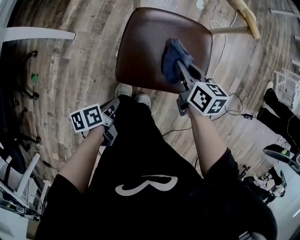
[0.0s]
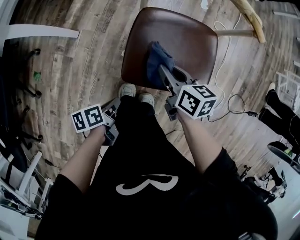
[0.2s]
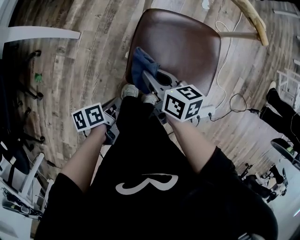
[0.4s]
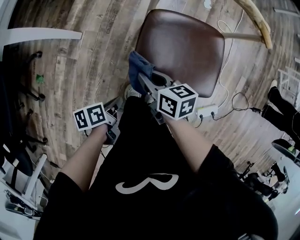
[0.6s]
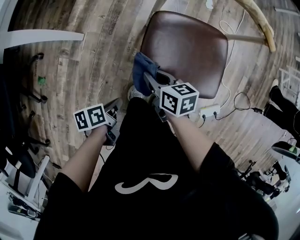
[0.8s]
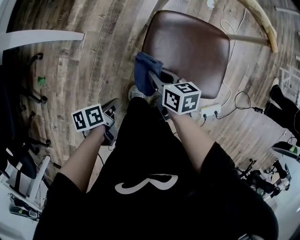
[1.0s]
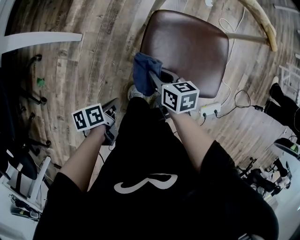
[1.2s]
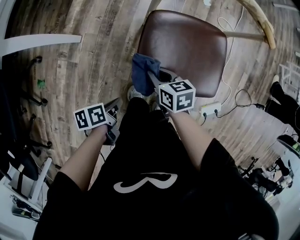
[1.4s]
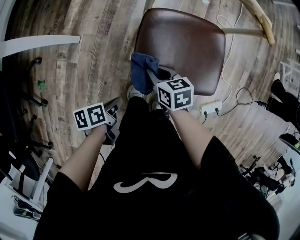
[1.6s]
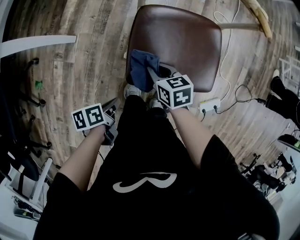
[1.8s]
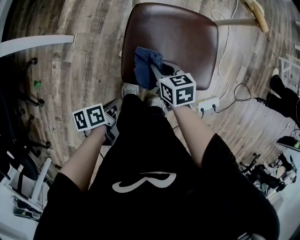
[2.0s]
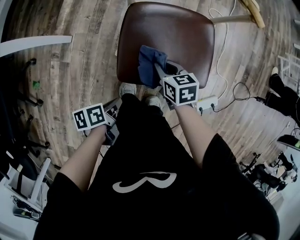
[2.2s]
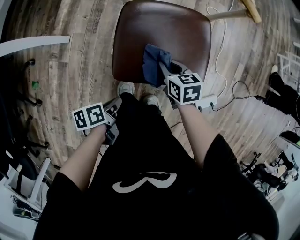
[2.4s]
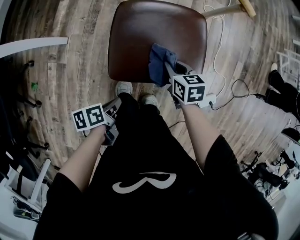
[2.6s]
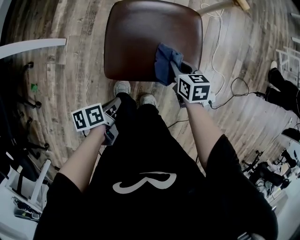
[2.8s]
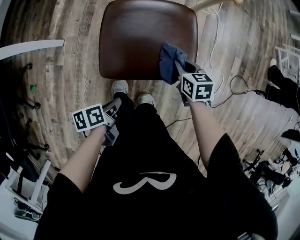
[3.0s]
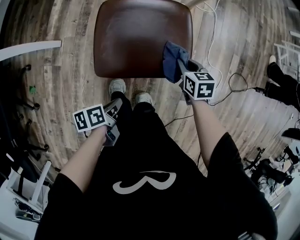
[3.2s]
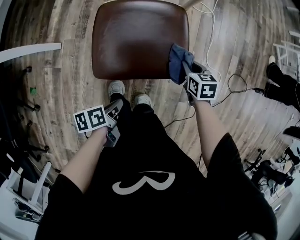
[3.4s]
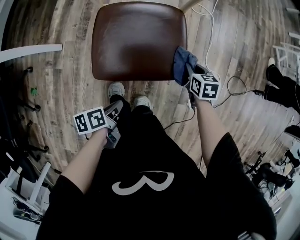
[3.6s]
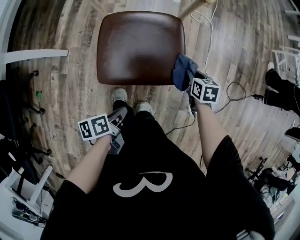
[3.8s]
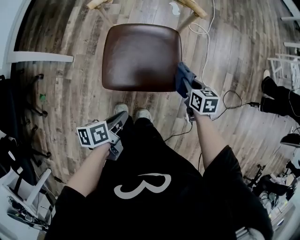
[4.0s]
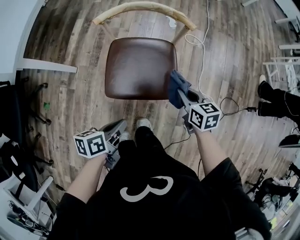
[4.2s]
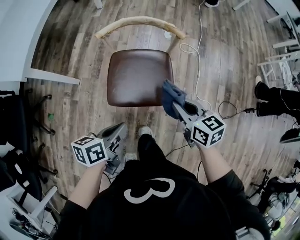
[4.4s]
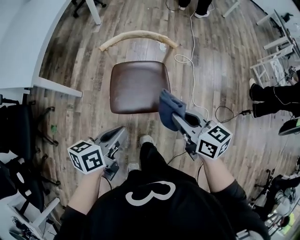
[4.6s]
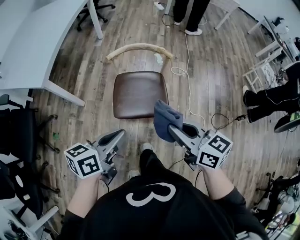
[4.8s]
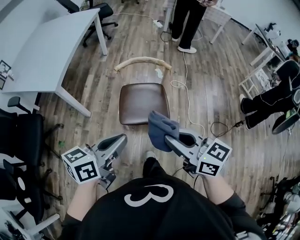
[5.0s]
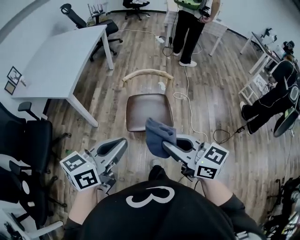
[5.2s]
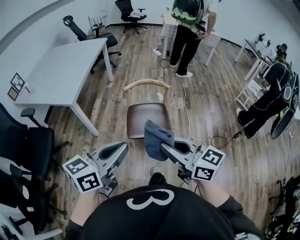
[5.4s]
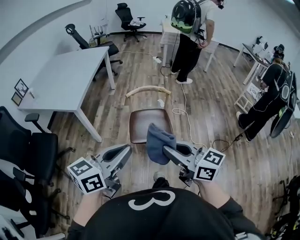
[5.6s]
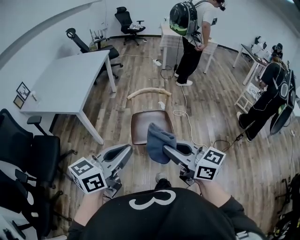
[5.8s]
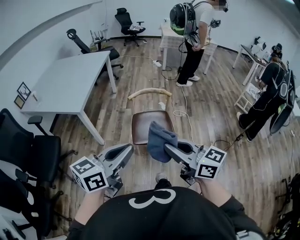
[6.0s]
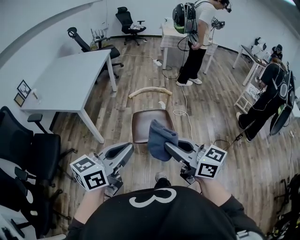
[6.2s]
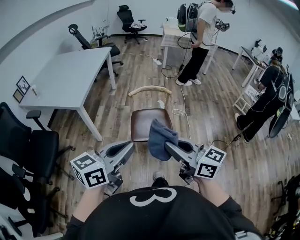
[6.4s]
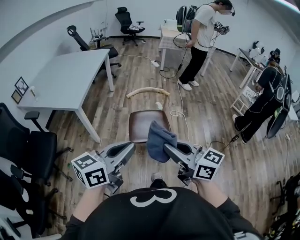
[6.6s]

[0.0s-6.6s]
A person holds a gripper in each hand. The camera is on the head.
0.0s to 1.6s: The right gripper changes place by roughly 20 cm.
1.6s to 3.2s: The right gripper changes place by approximately 25 cm.
3.2s to 5.0s: The right gripper moves upward, about 50 cm, and tips its fingers upward by roughly 40 degrees.
5.0s to 6.6s: The right gripper changes place by about 15 cm.

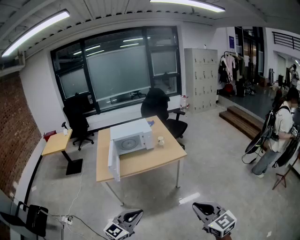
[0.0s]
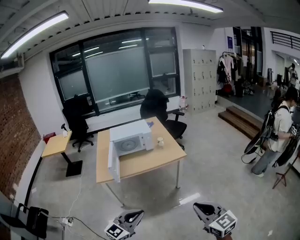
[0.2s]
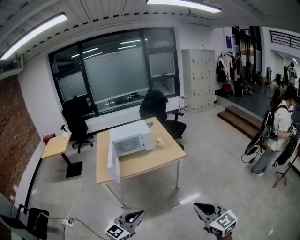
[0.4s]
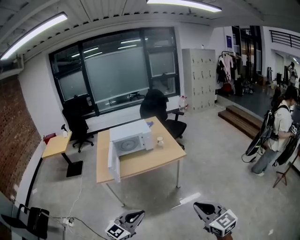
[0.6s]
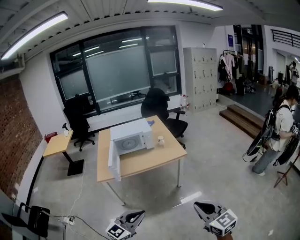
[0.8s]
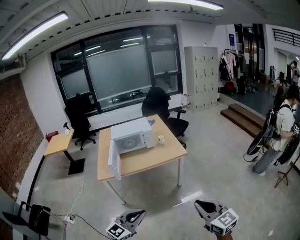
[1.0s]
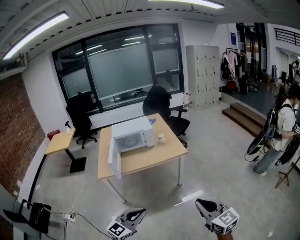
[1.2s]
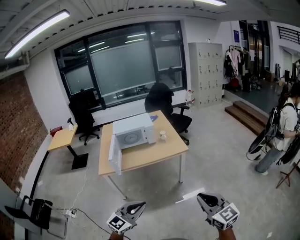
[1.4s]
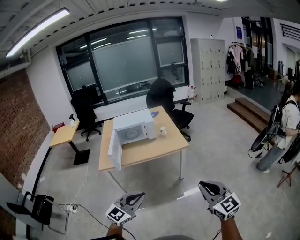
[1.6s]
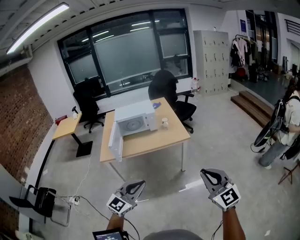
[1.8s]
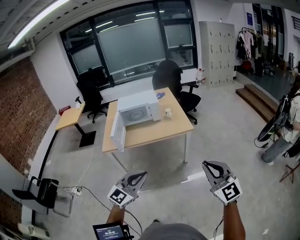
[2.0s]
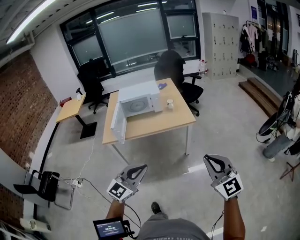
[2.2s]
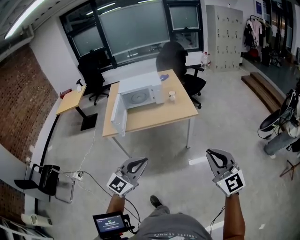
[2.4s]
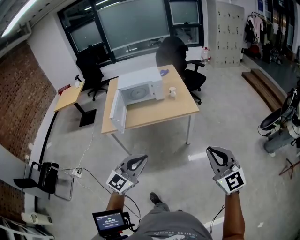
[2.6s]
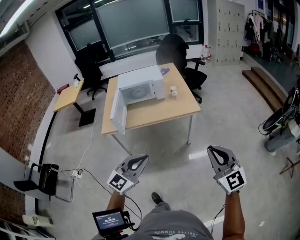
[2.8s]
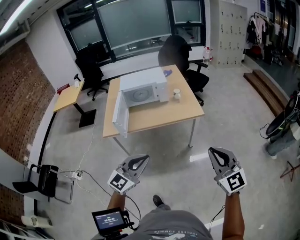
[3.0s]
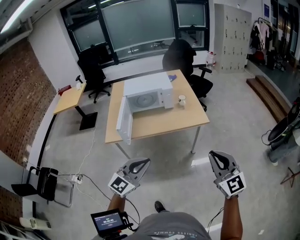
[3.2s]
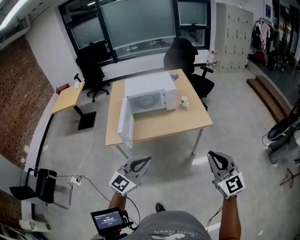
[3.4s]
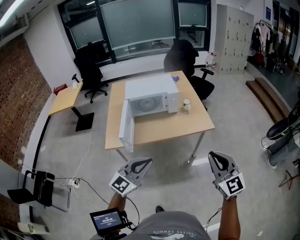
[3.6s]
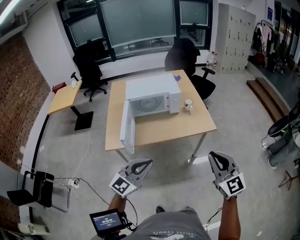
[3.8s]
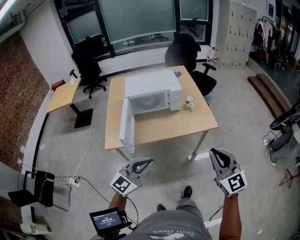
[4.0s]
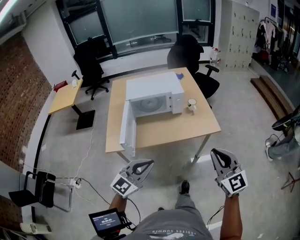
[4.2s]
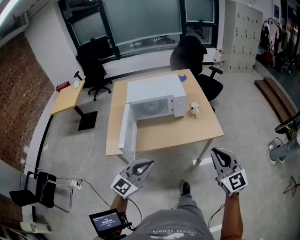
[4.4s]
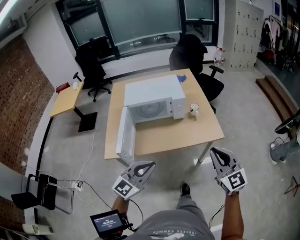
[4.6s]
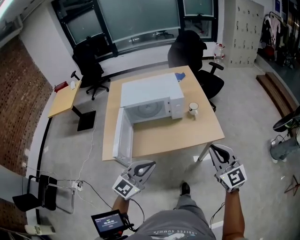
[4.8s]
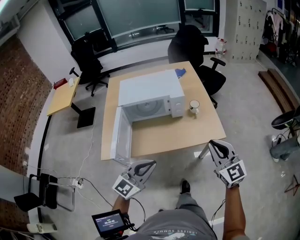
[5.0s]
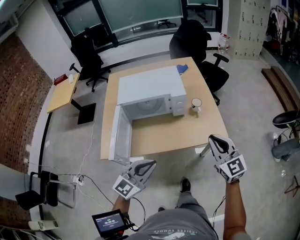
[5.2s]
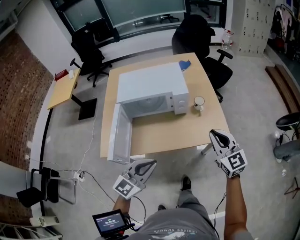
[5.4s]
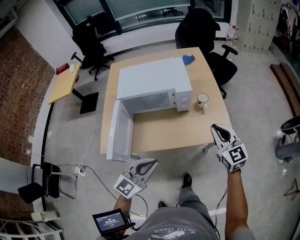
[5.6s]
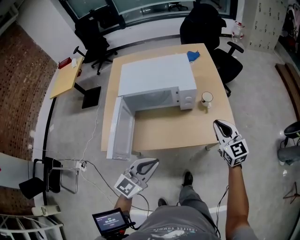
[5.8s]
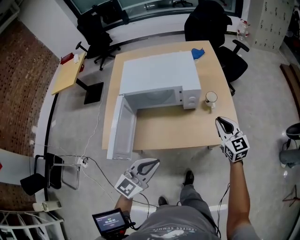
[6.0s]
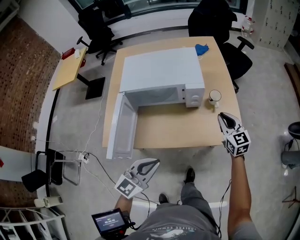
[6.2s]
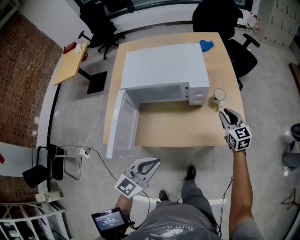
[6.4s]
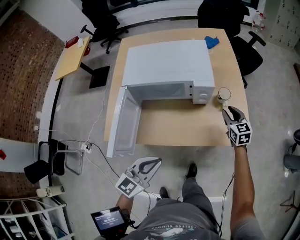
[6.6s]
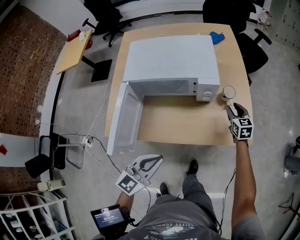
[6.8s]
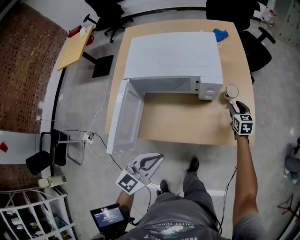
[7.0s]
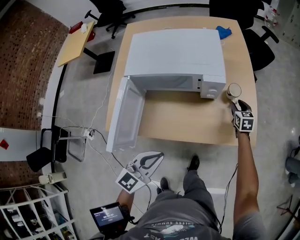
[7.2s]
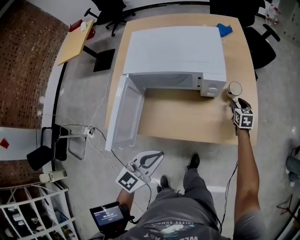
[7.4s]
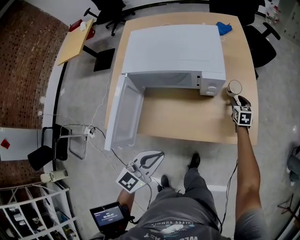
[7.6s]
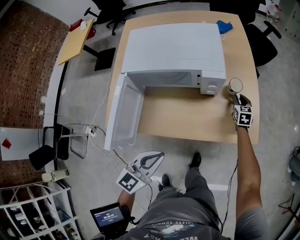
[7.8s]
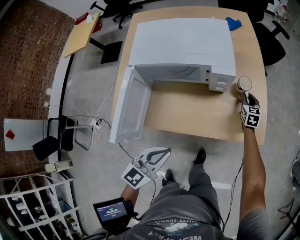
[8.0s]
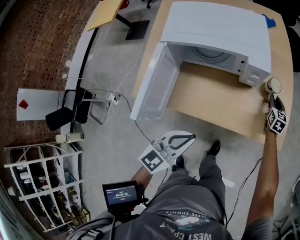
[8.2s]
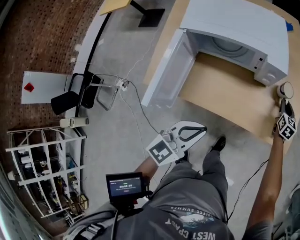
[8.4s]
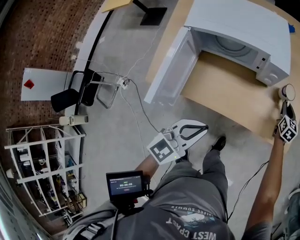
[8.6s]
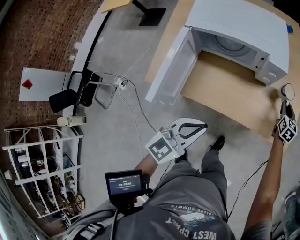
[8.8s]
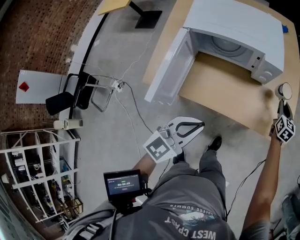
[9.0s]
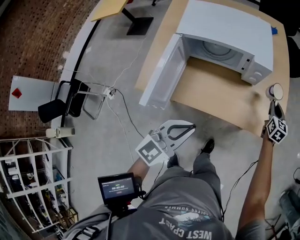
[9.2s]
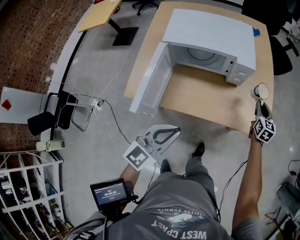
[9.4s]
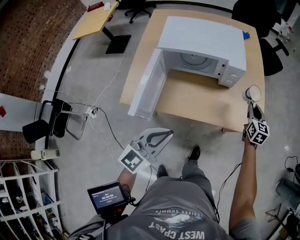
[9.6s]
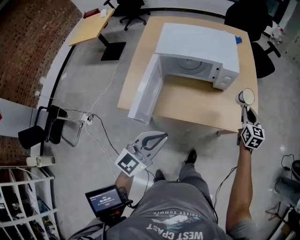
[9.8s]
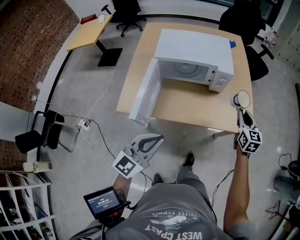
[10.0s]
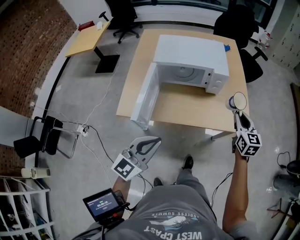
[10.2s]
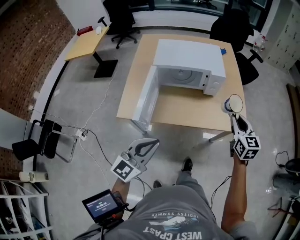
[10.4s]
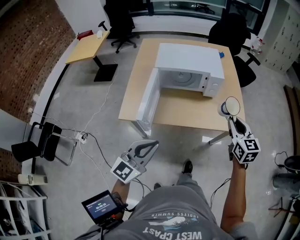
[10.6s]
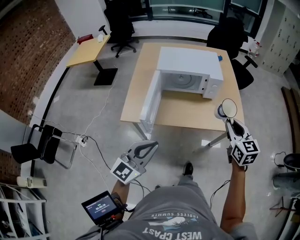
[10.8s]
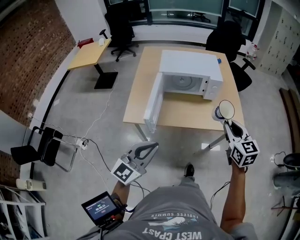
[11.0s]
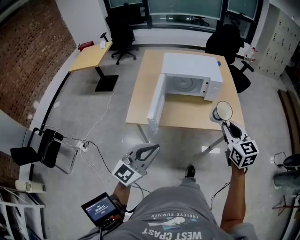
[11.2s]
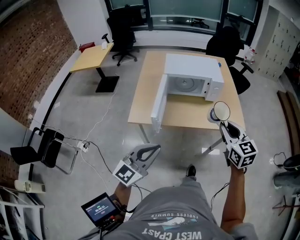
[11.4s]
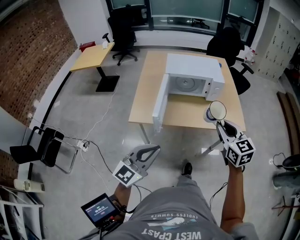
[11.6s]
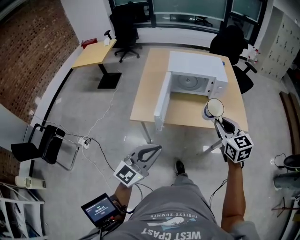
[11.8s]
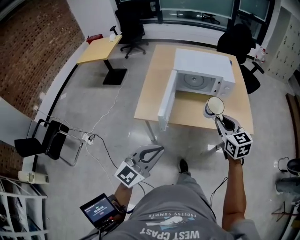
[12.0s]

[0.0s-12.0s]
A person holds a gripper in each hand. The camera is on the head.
0.0s to 1.6s: Both grippers travel together to the right, roughly 10 cm.
1.6s to 3.0s: The grippers both shift forward by some 15 cm.
3.0s to 4.4s: The grippers both shift forward and to the left by some 30 cm.
4.4s to 6.0s: The right gripper goes about 40 cm forward and downward; the left gripper shifts about 25 cm forward and downward.
6.0s to 7.6s: The right gripper shifts some 35 cm downward and forward, rotates approximately 30 degrees, and opens up. Meanwhile the left gripper travels downward and forward by approximately 10 cm.
7.6s to 9.0s: The right gripper heads upward and backward, covering roughly 10 cm, and closes up; the left gripper goes roughly 5 cm backward.
9.0s to 10.4s: The left gripper shifts some 20 cm backward, upward and to the left. The right gripper shifts roughly 35 cm backward and upward.
10.4s to 12.0s: The right gripper is displaced to the left and backward by approximately 25 cm, while the left gripper shifts roughly 15 cm backward and to the left.

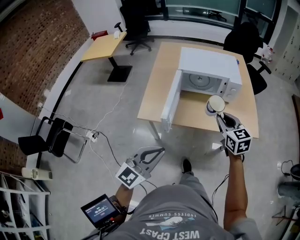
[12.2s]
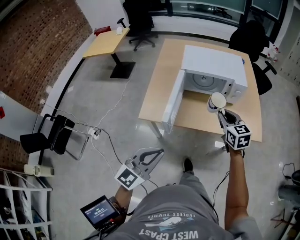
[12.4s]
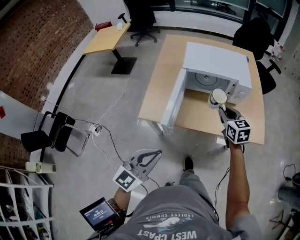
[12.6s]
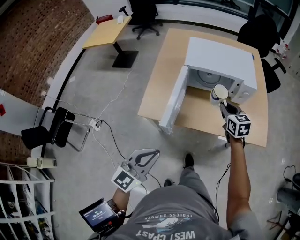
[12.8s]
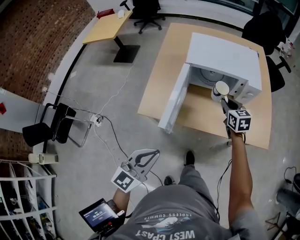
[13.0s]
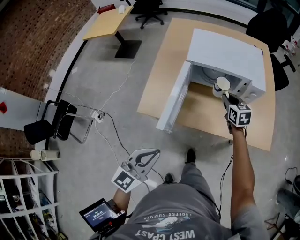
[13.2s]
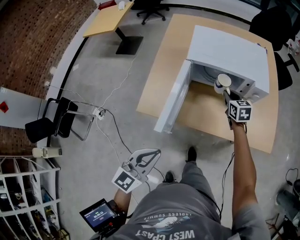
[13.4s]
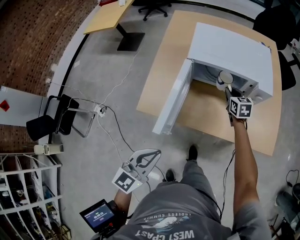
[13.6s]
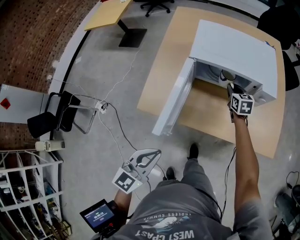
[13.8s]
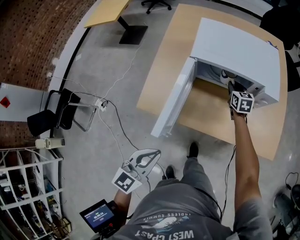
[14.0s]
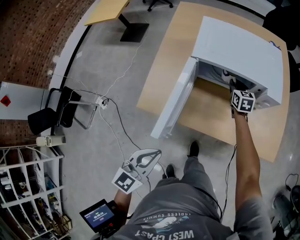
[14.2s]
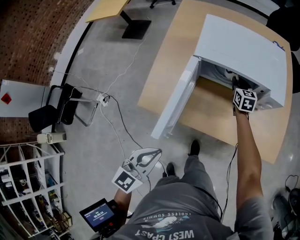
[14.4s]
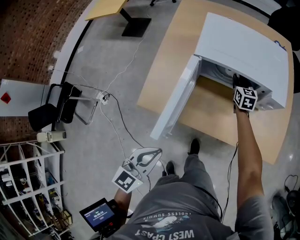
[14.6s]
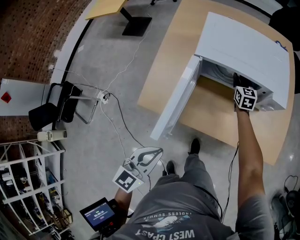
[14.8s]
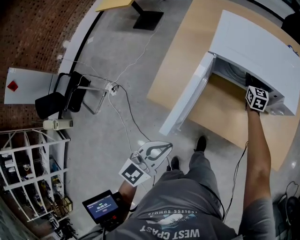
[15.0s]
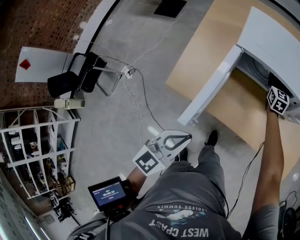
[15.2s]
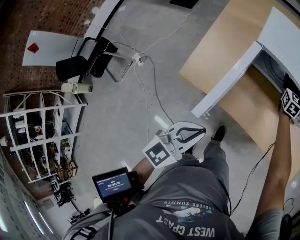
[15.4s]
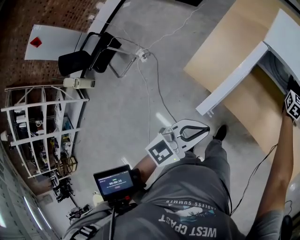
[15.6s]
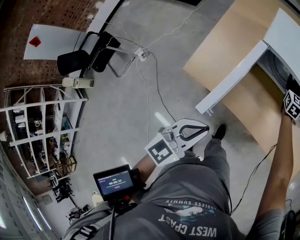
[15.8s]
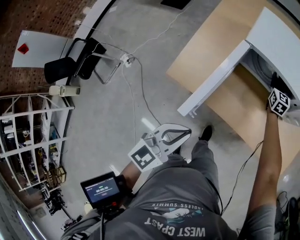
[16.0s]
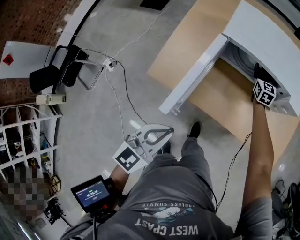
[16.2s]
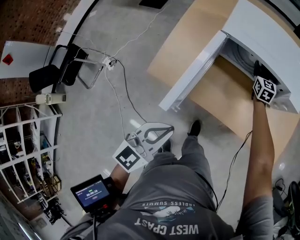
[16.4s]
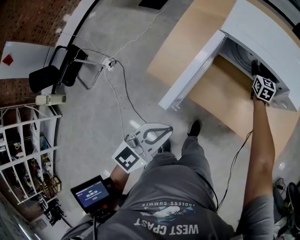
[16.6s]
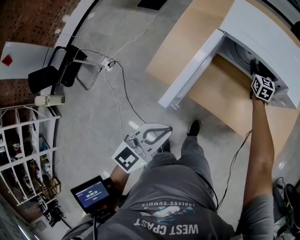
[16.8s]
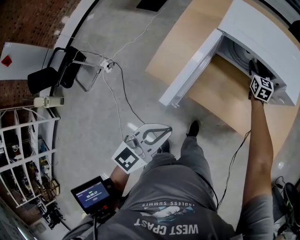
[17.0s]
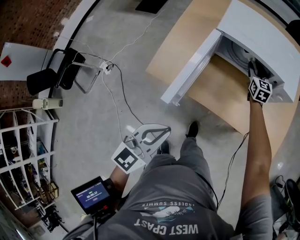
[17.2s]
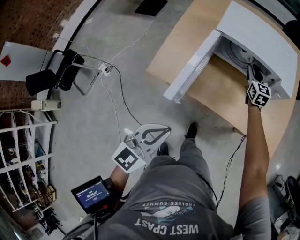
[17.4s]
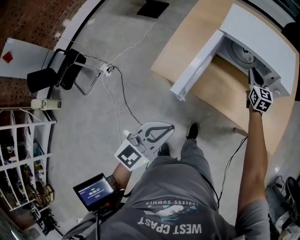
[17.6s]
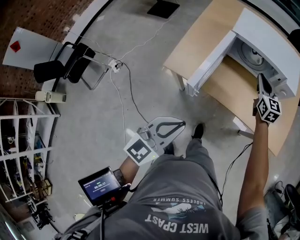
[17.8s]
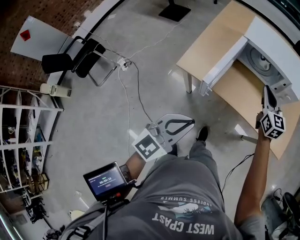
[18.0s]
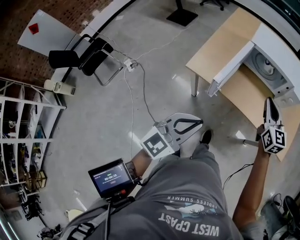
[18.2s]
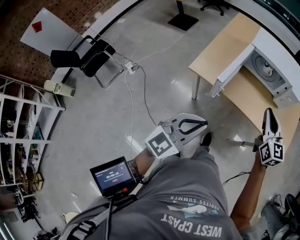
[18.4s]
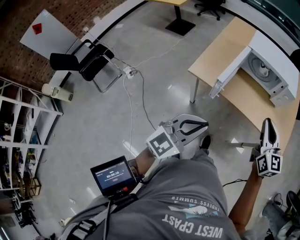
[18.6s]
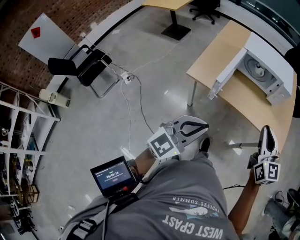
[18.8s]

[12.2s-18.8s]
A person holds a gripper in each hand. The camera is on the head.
12.2s to 13.8s: The right gripper moves forward and downward, approximately 40 cm; the left gripper travels forward and downward by approximately 20 cm, and turns by roughly 20 degrees.
13.8s to 15.4s: The right gripper moves forward, about 10 cm; the left gripper travels forward by some 5 cm.
15.4s to 17.2s: Both grippers travel together backward, some 5 cm.
17.2s to 18.8s: The left gripper goes some 25 cm backward and upward, while the right gripper is displaced backward and upward by some 60 cm, and closes.
